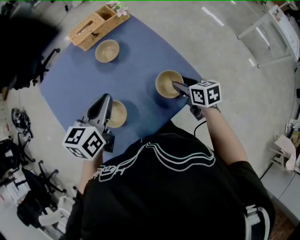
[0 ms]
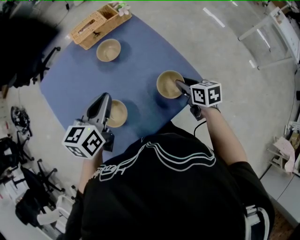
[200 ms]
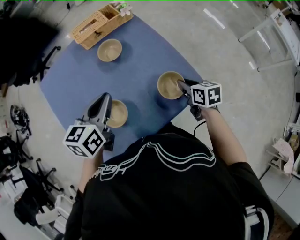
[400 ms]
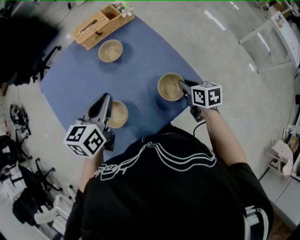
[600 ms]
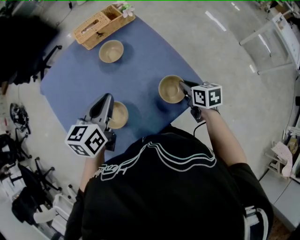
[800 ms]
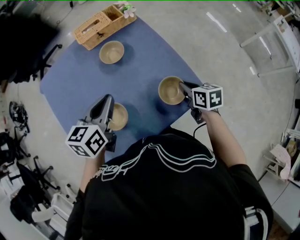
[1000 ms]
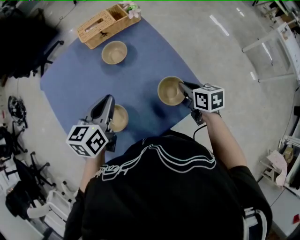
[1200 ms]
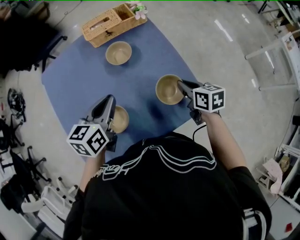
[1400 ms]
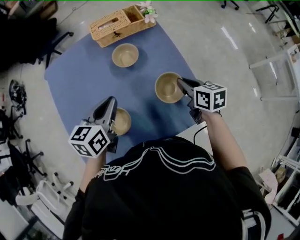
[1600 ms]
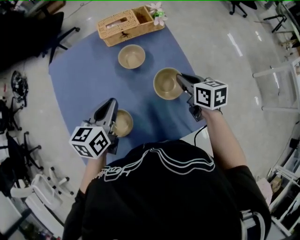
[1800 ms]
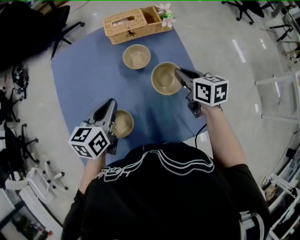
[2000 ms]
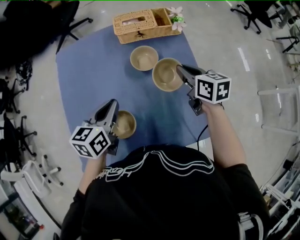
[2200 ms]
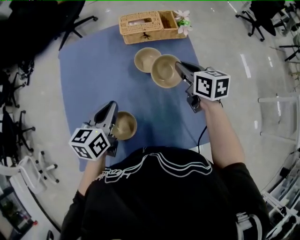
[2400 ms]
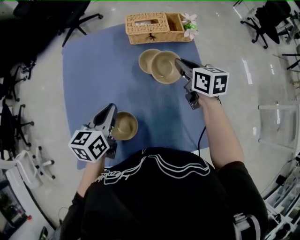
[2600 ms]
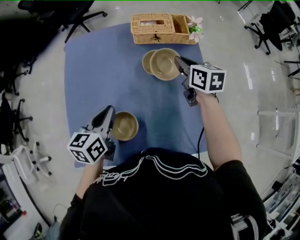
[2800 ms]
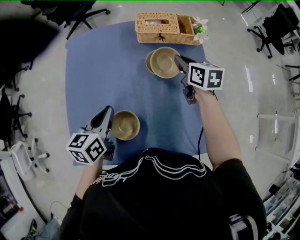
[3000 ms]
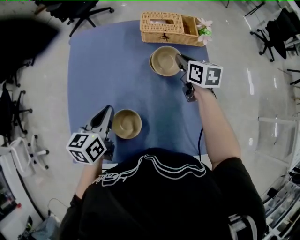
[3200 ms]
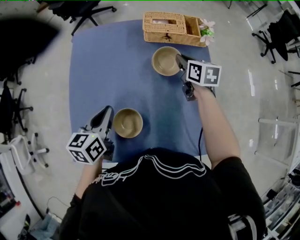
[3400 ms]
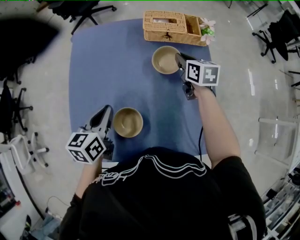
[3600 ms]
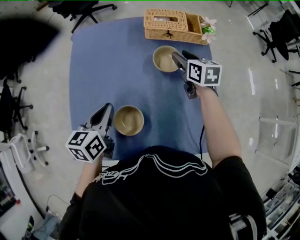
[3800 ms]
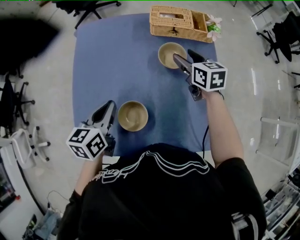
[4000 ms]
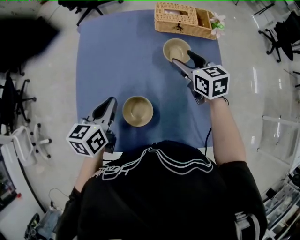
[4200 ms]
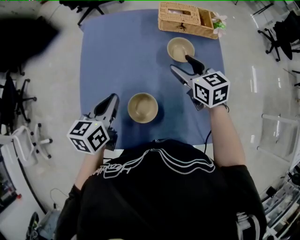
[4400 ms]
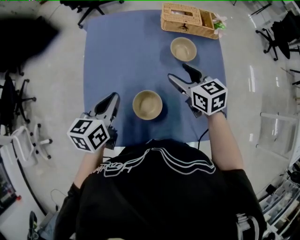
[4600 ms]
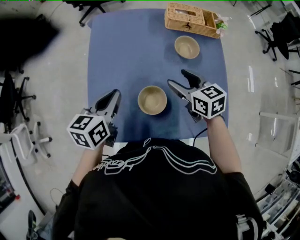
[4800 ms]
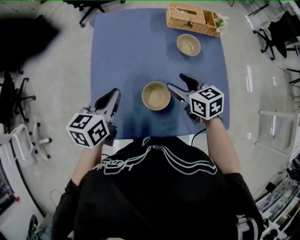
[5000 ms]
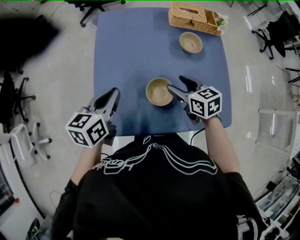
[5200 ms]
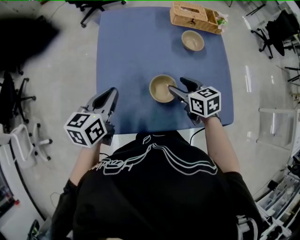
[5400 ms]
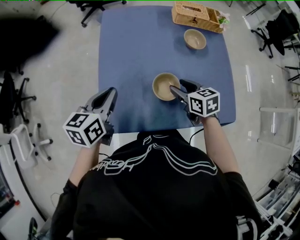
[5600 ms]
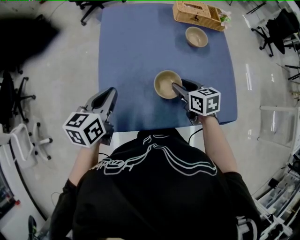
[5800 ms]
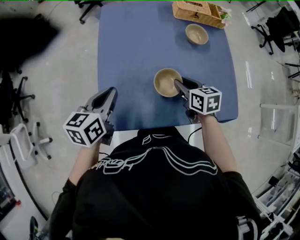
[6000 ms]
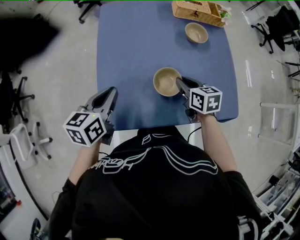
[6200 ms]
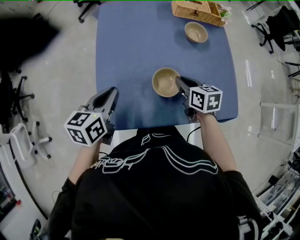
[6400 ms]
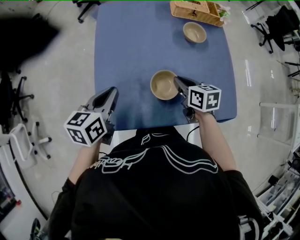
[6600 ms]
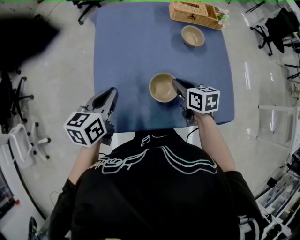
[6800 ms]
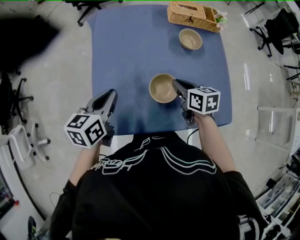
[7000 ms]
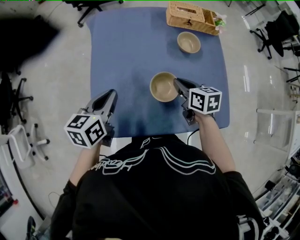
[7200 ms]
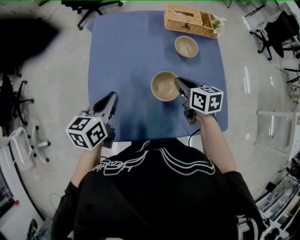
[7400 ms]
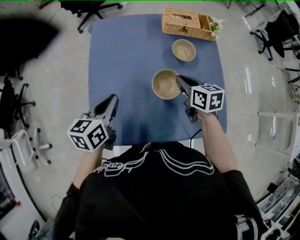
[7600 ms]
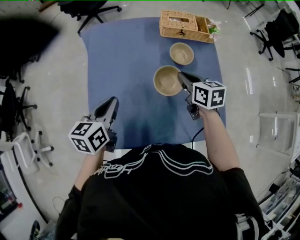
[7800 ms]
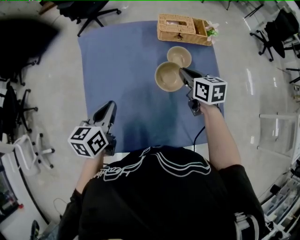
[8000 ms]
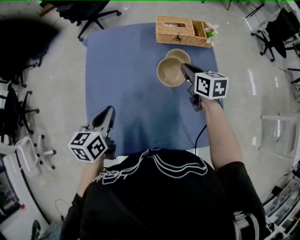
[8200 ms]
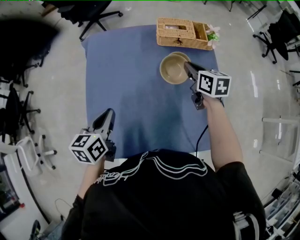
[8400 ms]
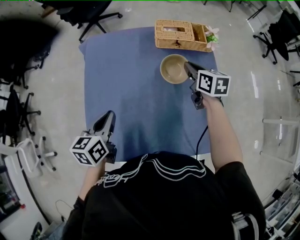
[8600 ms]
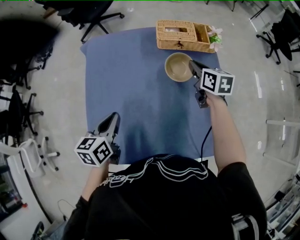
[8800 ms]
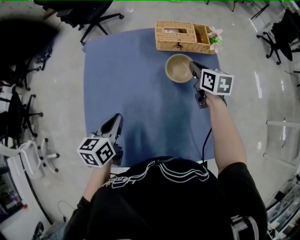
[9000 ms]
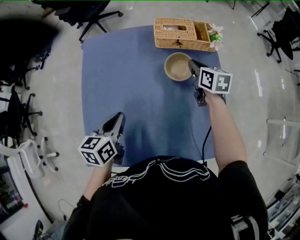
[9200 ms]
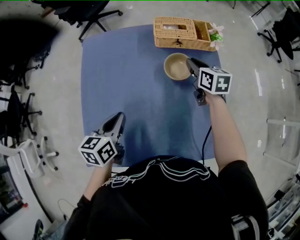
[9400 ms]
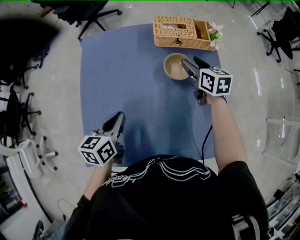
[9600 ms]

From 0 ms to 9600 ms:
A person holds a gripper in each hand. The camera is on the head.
From 0 ms to 1600 ms: The left gripper moves roughly 5 cm; the right gripper is displaced forward by approximately 10 cm, and closes its fingers.
From 1600 ms to 3200 ms: The right gripper goes about 25 cm forward and to the left. The left gripper heads to the left, covering approximately 10 cm, and rotates roughly 20 degrees.
From 3200 ms to 4800 ms: The right gripper travels backward and to the left by about 25 cm, rotates roughly 20 degrees, and opens up. Meanwhile the left gripper travels to the left by about 10 cm.
From 4800 ms to 6400 ms: The left gripper goes about 10 cm to the left and backward. Meanwhile the right gripper goes some 10 cm downward and backward, and closes up.
From 6400 ms to 8000 ms: The right gripper moves forward, to the right and upward, approximately 20 cm. Meanwhile the left gripper is displaced to the right and forward by approximately 10 cm.
From 8000 ms to 9600 ms: The left gripper shifts some 10 cm to the right and downward; the right gripper is displaced forward and to the right by about 15 cm, and opens up.

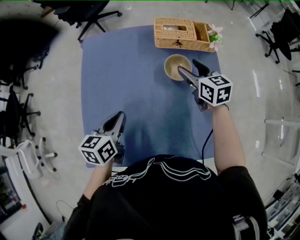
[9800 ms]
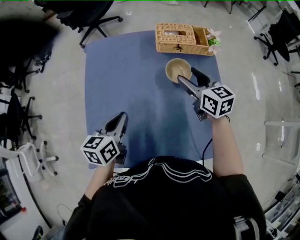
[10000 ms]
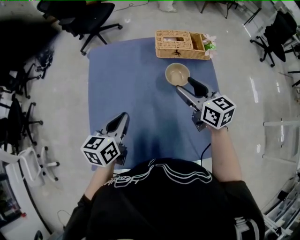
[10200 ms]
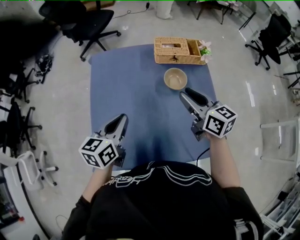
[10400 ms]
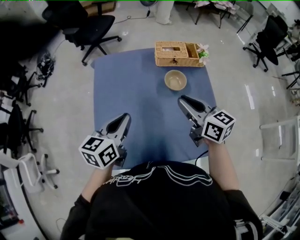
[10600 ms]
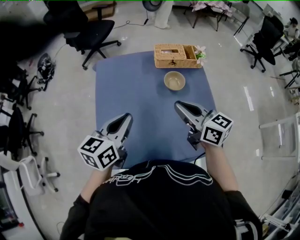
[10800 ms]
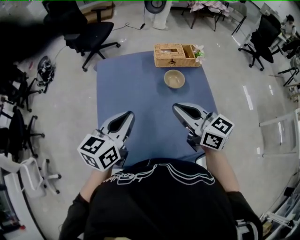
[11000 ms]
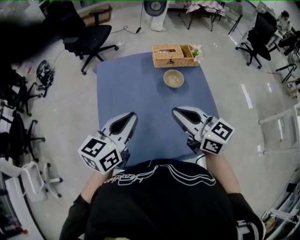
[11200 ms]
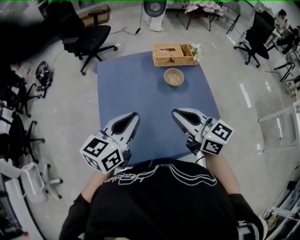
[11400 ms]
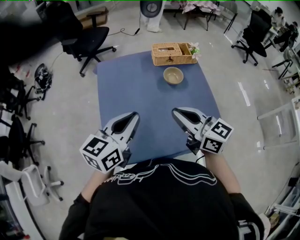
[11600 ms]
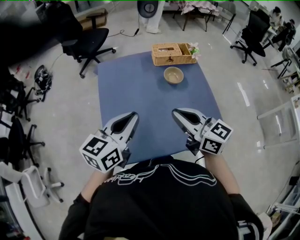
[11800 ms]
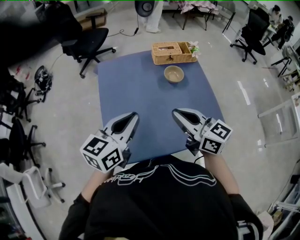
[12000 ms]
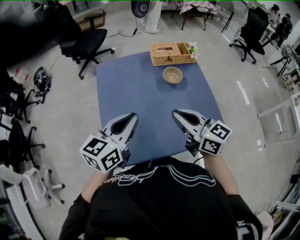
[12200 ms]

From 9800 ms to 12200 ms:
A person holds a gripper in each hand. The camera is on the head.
From 9800 ms to 11000 ms: The right gripper travels backward, upward and to the left by approximately 30 cm, rotates about 30 degrees, and closes. The left gripper is displaced upward by roughly 20 cm, and swivels roughly 20 degrees.
From 11000 ms to 12200 ms: The right gripper moves backward, some 5 cm.

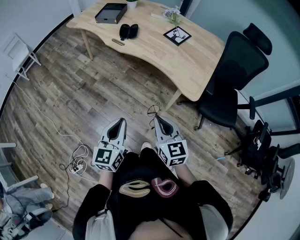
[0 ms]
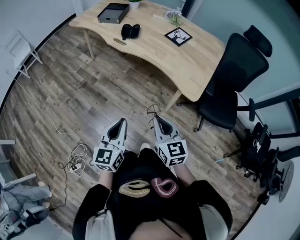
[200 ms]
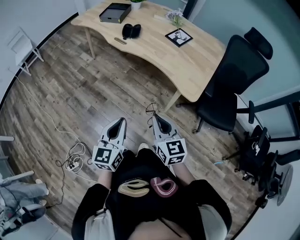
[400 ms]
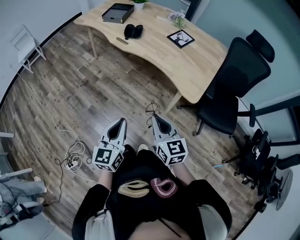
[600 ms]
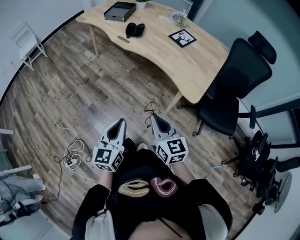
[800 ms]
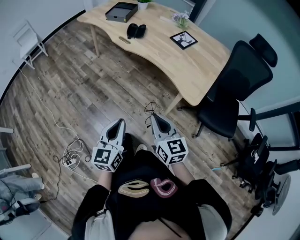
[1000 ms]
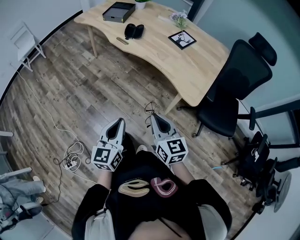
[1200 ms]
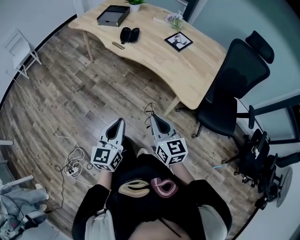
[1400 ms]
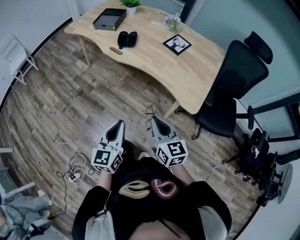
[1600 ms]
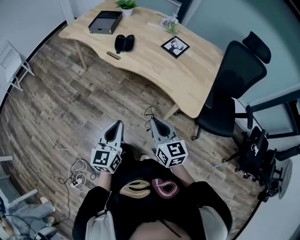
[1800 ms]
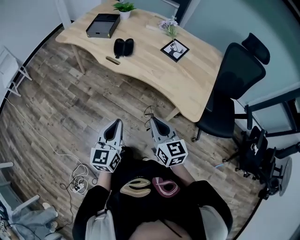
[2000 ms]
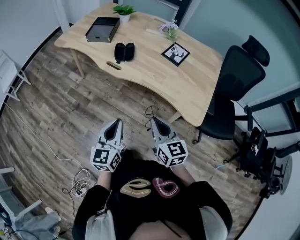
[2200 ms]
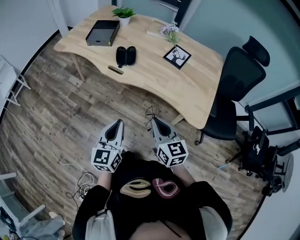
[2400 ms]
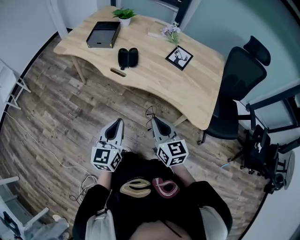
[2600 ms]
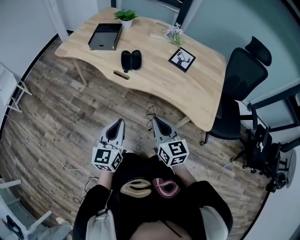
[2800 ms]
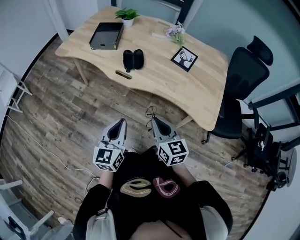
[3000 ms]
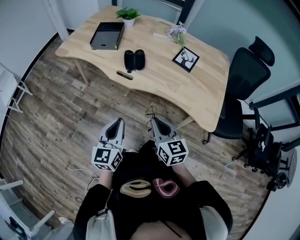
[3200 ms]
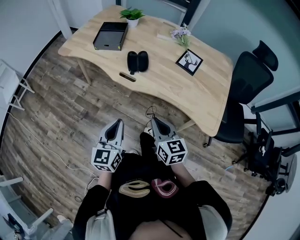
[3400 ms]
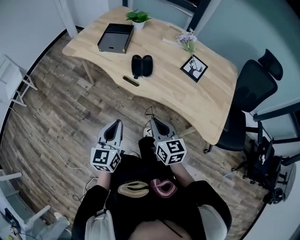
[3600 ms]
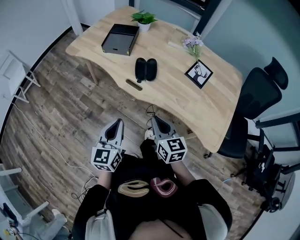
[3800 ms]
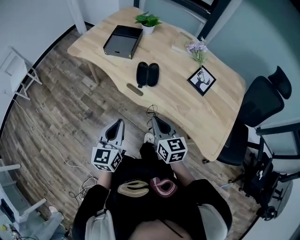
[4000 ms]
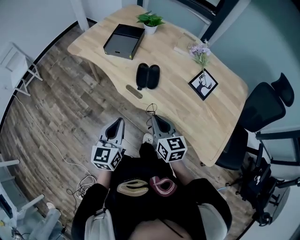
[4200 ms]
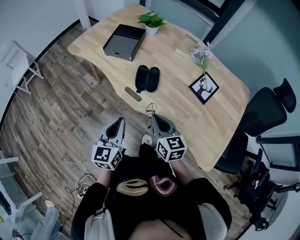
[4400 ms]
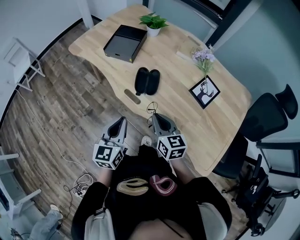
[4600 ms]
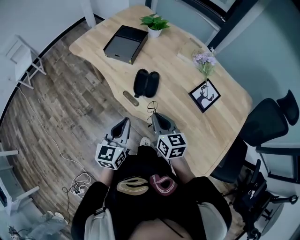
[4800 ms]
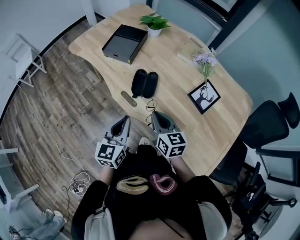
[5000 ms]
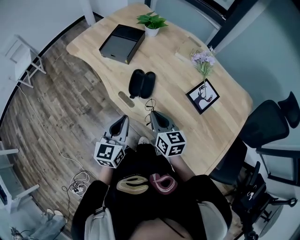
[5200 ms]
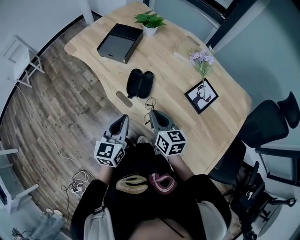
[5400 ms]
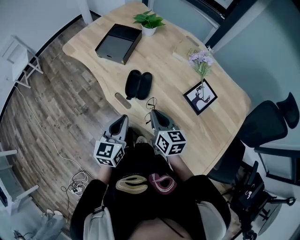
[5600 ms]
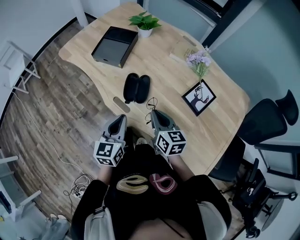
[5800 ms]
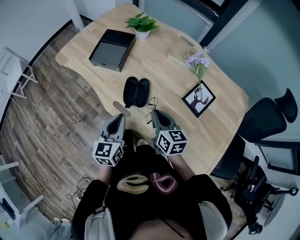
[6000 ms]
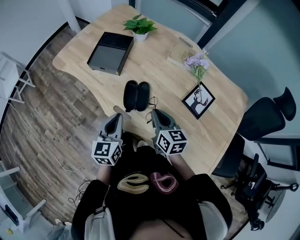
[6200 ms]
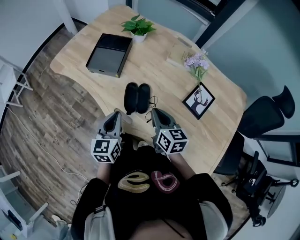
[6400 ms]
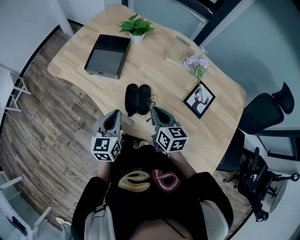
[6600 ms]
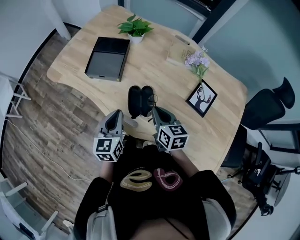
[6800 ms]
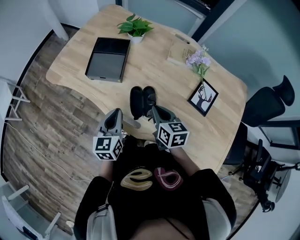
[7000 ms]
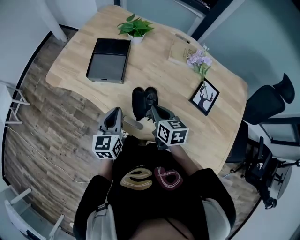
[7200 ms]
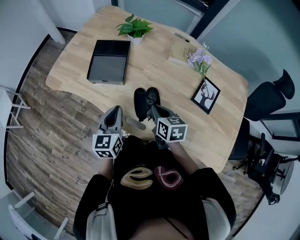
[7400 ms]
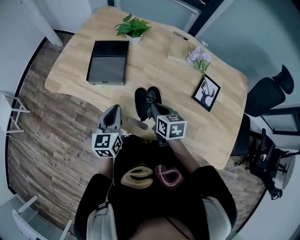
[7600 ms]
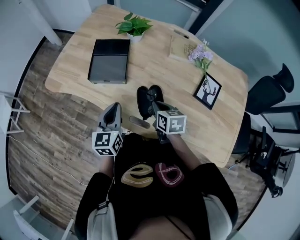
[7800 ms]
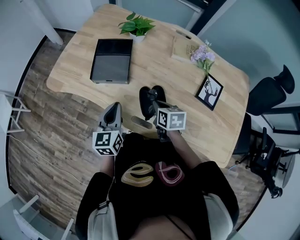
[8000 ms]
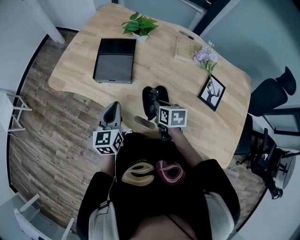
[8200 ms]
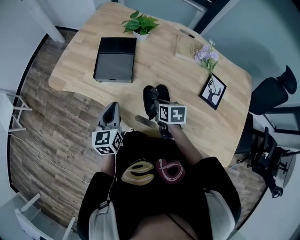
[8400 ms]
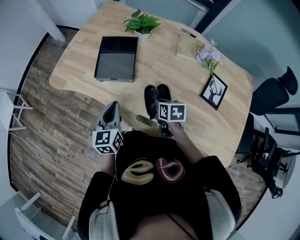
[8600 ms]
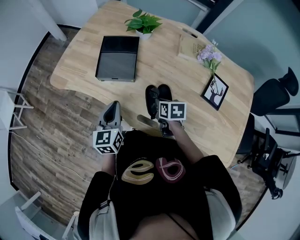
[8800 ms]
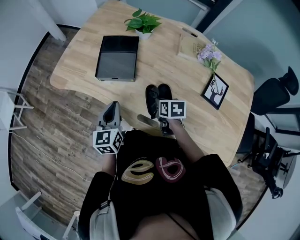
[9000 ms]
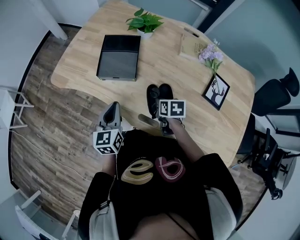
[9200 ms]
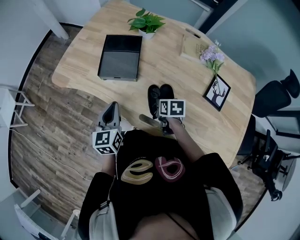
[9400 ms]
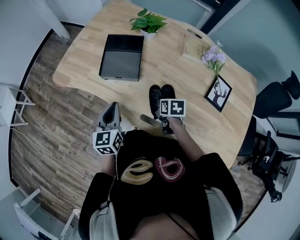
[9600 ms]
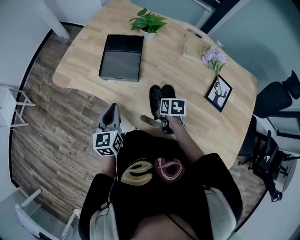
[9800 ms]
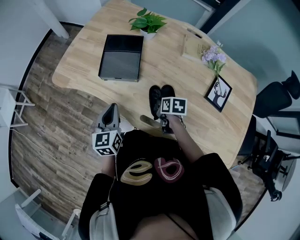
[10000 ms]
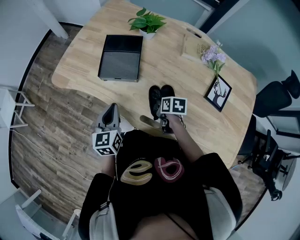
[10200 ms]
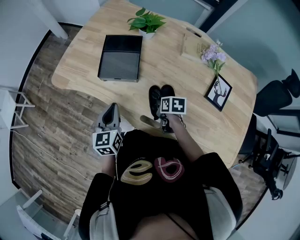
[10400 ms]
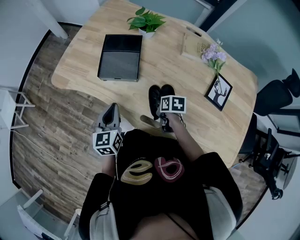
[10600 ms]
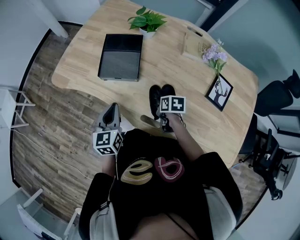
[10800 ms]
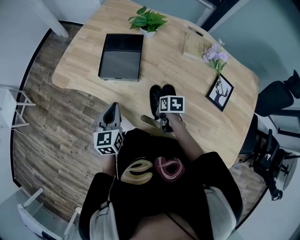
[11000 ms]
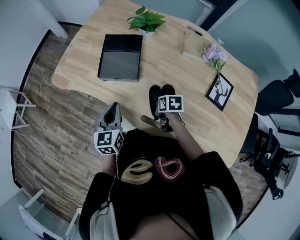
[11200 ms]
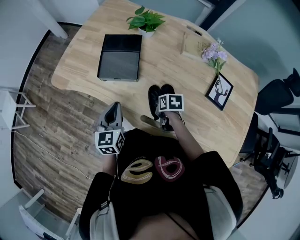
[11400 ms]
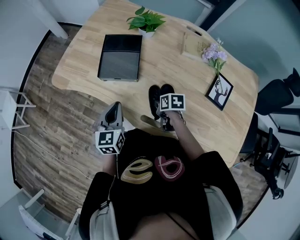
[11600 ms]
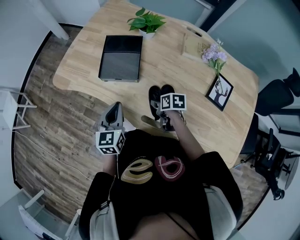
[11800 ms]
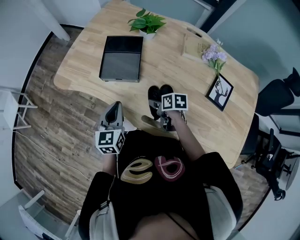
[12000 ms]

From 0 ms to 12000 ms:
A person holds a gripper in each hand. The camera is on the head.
From 0 ms to 1600 ms: Both grippers move forward, some 5 cm.
From 1600 ms to 3000 ms: Both grippers move forward and to the left, about 20 cm.
From 3000 ms to 4400 ms: The grippers both shift forward by about 20 cm.
From 4400 ms to 6000 ms: Both grippers travel together forward and to the right, about 15 cm.
From 6000 ms to 7600 ms: Both grippers move forward and to the left, some 15 cm. The right gripper turns by about 20 degrees.
From 7600 ms to 9000 ms: The left gripper shifts roughly 5 cm to the left. Meanwhile the right gripper heads downward, covering about 5 cm.
From 9000 ms to 10400 ms: There are only small adjustments of the grippers.
From 10400 ms to 12000 ms: The right gripper opens.
